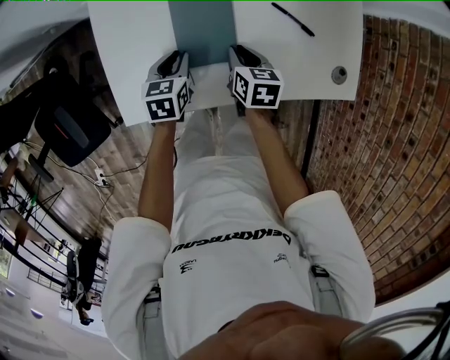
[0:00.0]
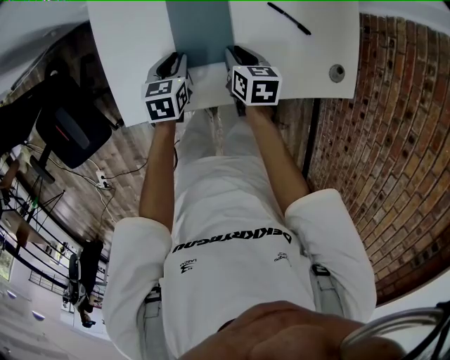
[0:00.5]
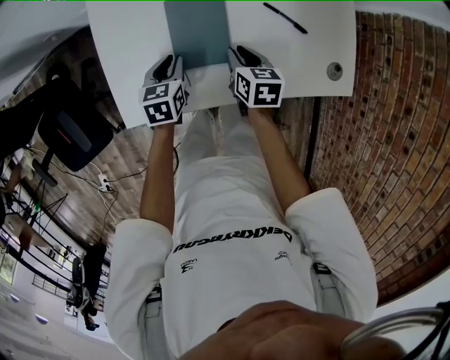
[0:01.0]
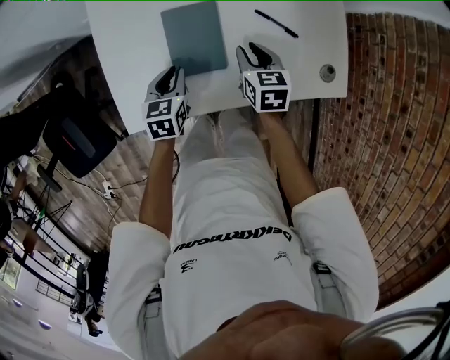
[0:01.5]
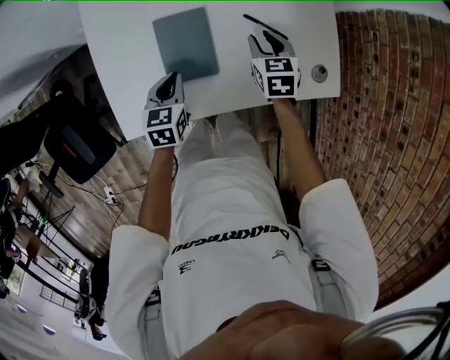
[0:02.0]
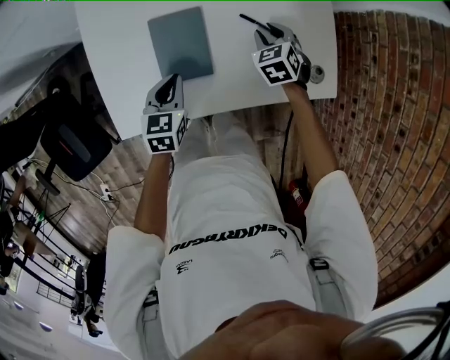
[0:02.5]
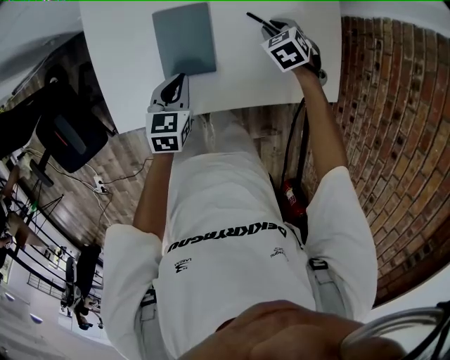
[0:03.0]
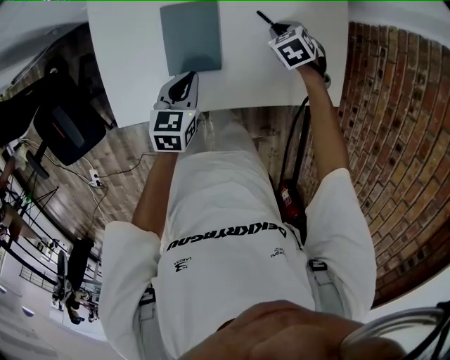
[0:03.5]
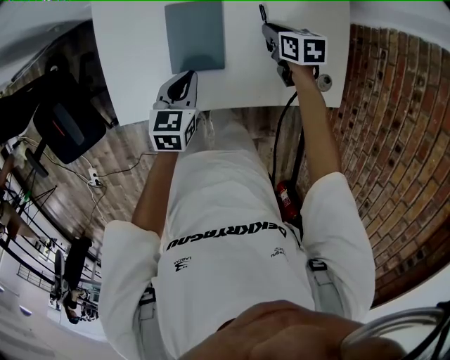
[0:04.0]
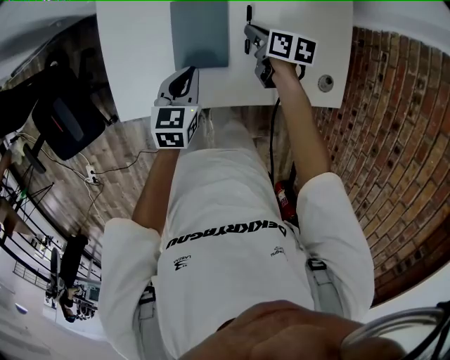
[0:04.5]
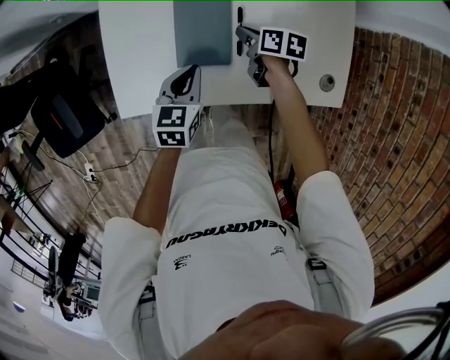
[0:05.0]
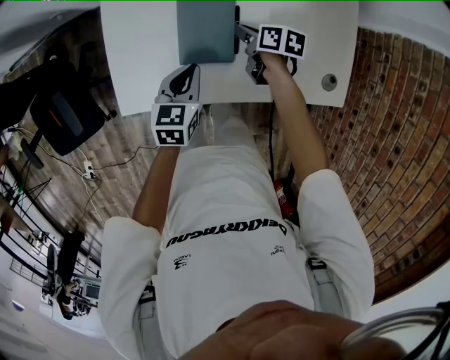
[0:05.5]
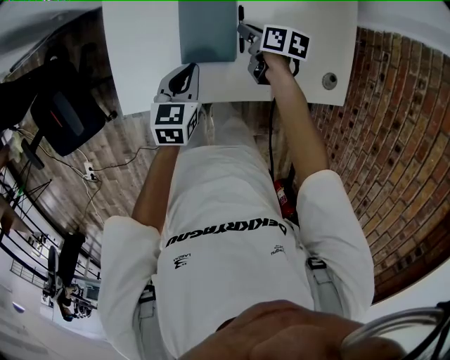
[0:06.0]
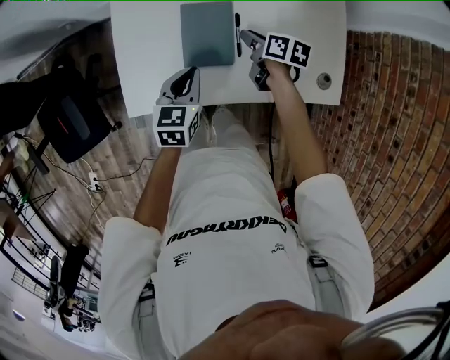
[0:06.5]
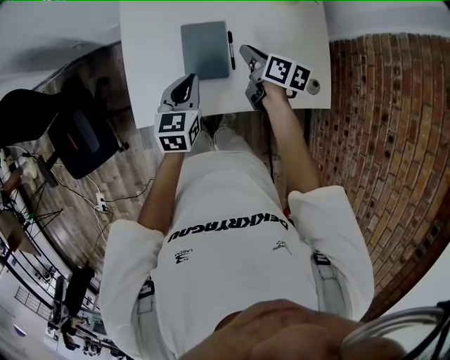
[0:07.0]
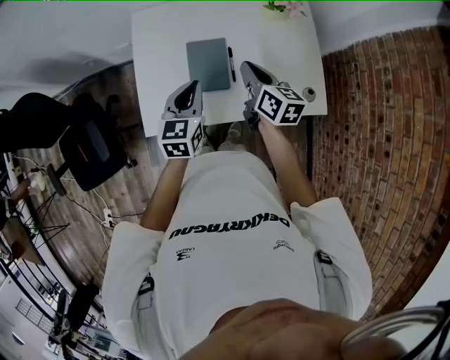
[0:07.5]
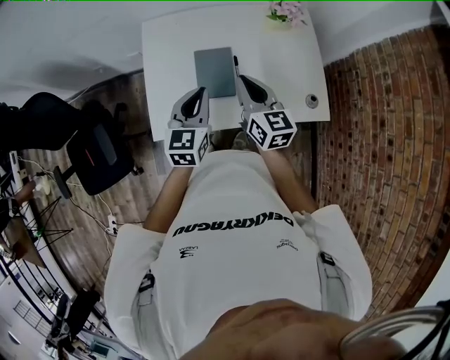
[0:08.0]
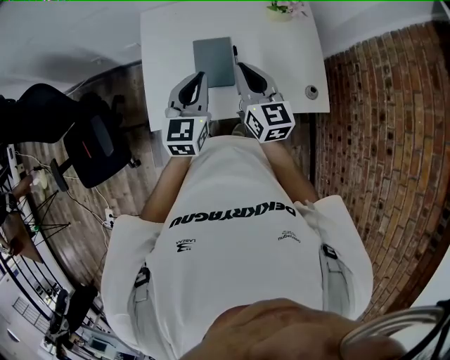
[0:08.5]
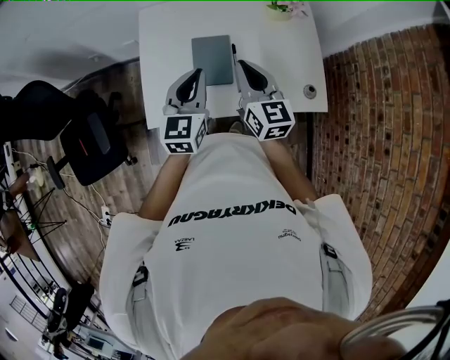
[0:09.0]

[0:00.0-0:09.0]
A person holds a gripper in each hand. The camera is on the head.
0:00.0 to 0:02.0: The left gripper is displaced upward by some 5 cm; the right gripper travels to the right, forward and upward by some 15 cm, and changes its angle by roughly 20 degrees.
0:02.0 to 0:04.5: The right gripper goes some 10 cm to the left and downward, and changes its angle by some 40 degrees.
0:04.5 to 0:07.0: Both grippers travel together upward, roughly 15 cm.
0:07.0 to 0:09.0: The right gripper is displaced upward and backward by some 20 cm, and rotates roughly 50 degrees. Meanwhile the left gripper goes approximately 15 cm upward.

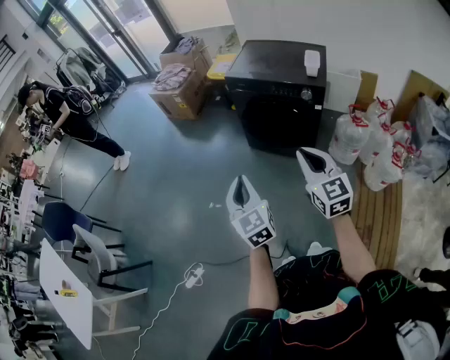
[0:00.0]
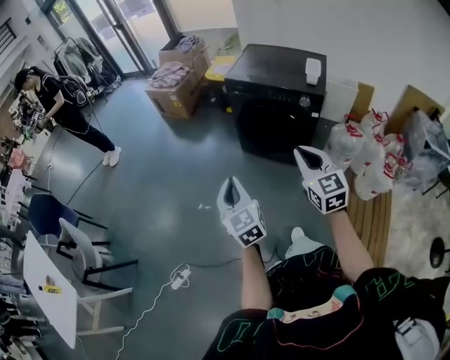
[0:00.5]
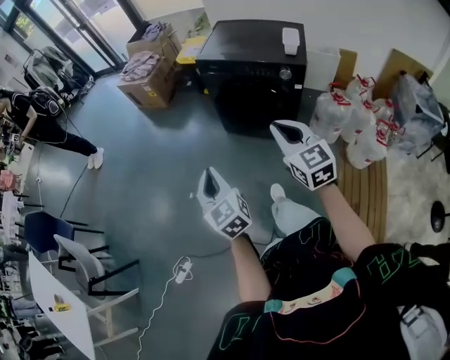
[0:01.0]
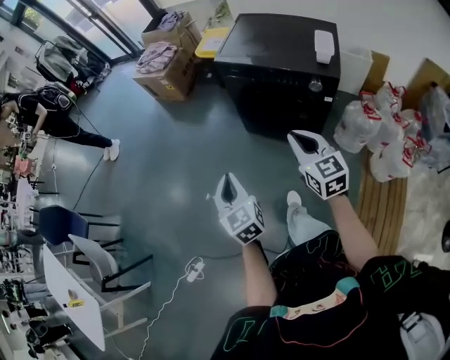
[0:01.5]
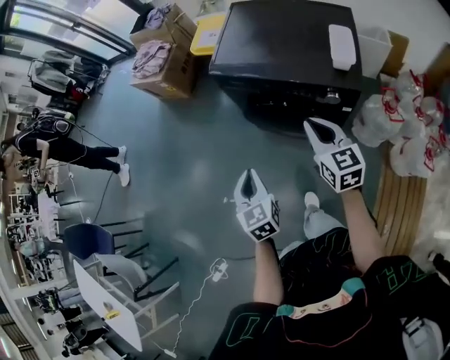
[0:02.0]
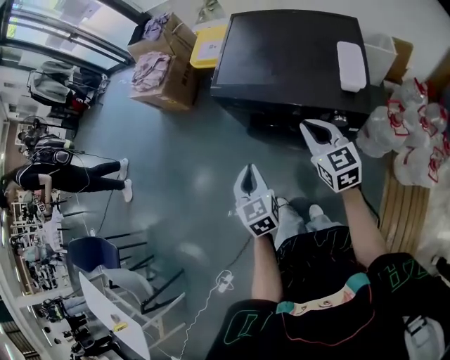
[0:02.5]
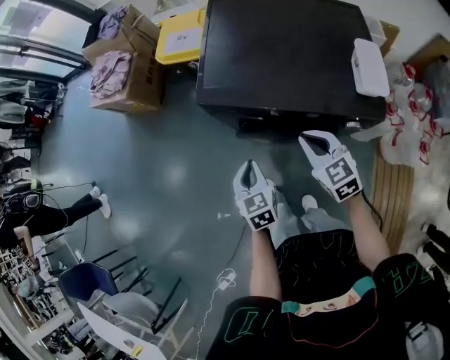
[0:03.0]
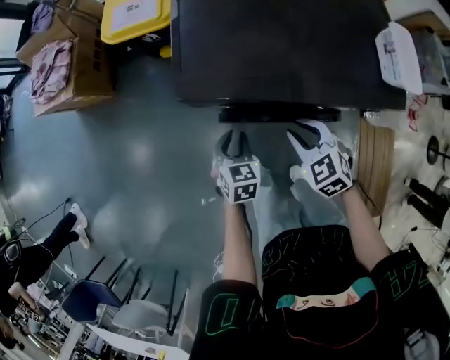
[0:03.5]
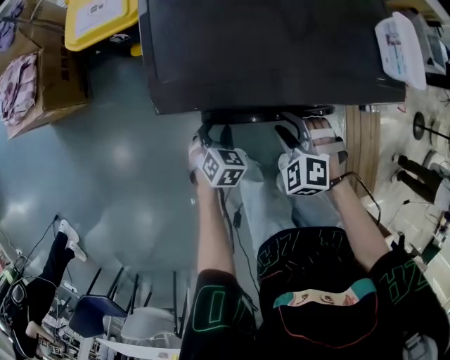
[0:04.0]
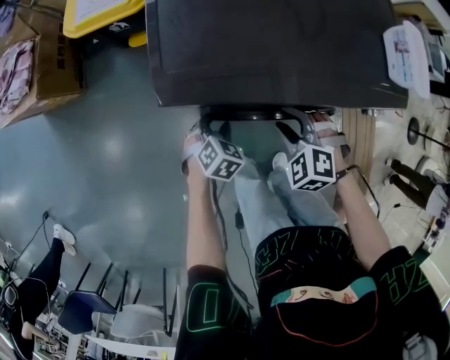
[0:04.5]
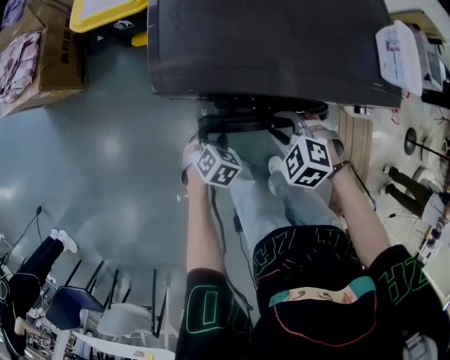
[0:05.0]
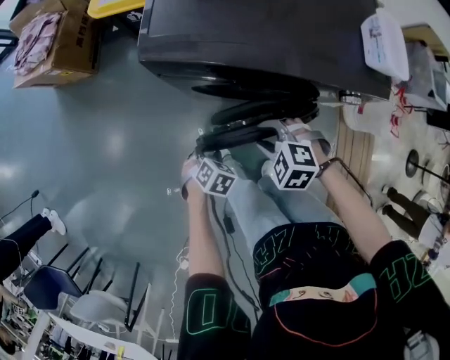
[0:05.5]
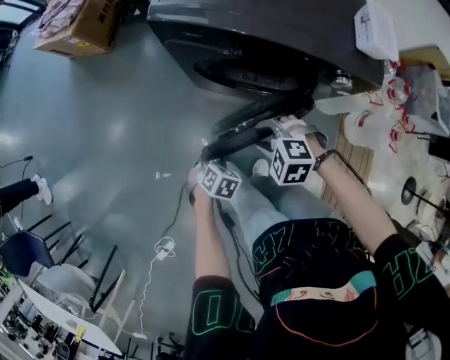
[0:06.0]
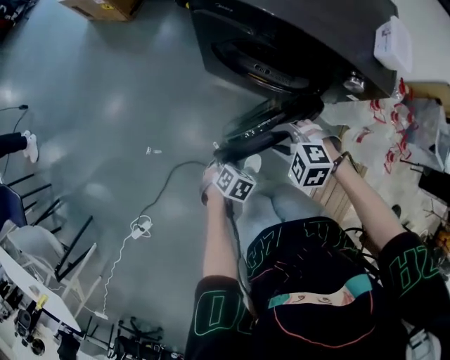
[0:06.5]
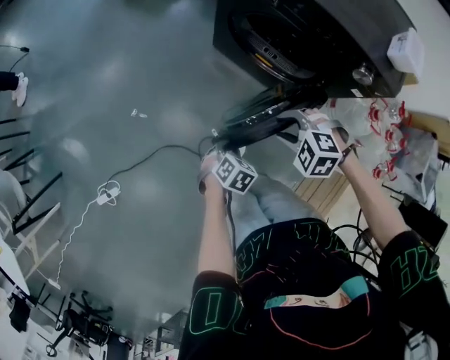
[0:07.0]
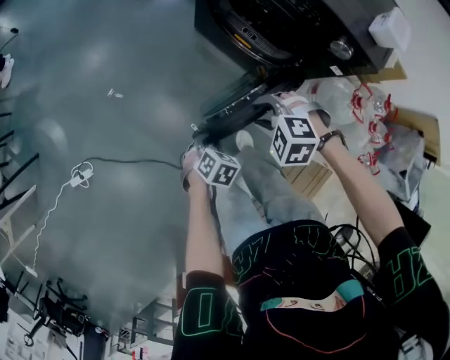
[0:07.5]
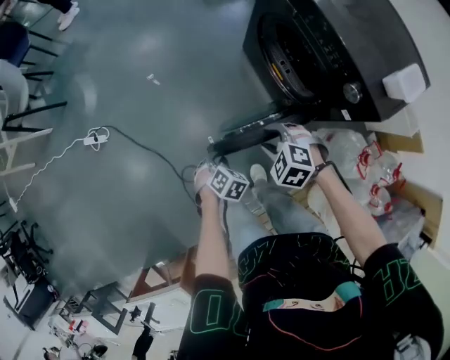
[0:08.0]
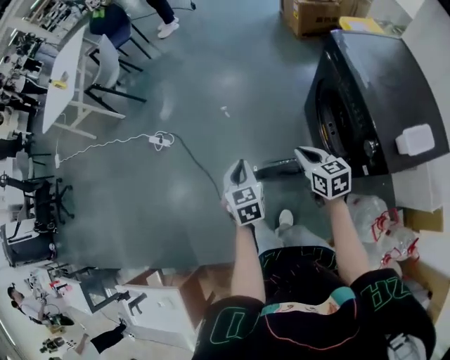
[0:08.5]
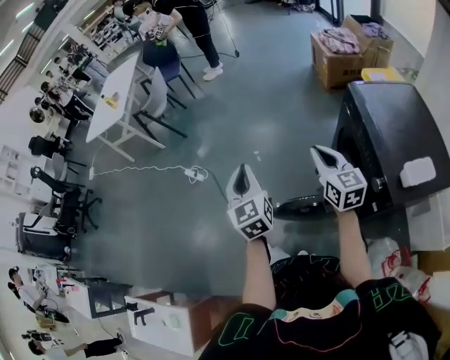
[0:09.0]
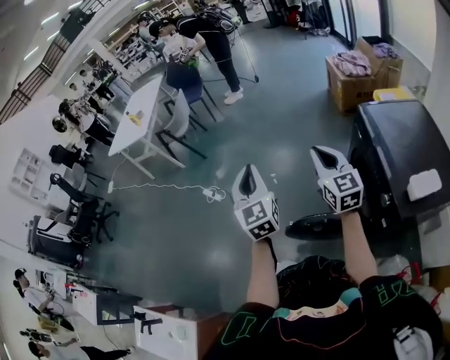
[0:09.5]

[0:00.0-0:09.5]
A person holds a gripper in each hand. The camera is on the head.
0:00.0 to 0:02.0: The left gripper heads forward, downward and to the right, covering about 35 cm, while the right gripper heads forward and to the right, covering about 35 cm.
0:02.0 to 0:04.0: Both grippers travel together downward, some 30 cm. The left gripper changes its angle by approximately 70 degrees, and opens, while the right gripper tips its fingers downward by roughly 40 degrees, and opens its fingers.
0:04.0 to 0:05.5: The left gripper shifts by some 15 cm. Meanwhile the right gripper ends up roughly 10 cm from where it was, and turns by roughly 30 degrees.
0:05.5 to 0:07.5: The right gripper changes place by roughly 25 cm, and rolls counterclockwise, seen from behind, by some 40 degrees; the left gripper changes place by some 35 cm, and changes its angle by approximately 40 degrees.
0:07.5 to 0:09.5: Both grippers move upward, approximately 50 cm. The right gripper tips its fingers upward by approximately 70 degrees, and closes; the left gripper points its fingers roughly 70 degrees further upward, and closes.

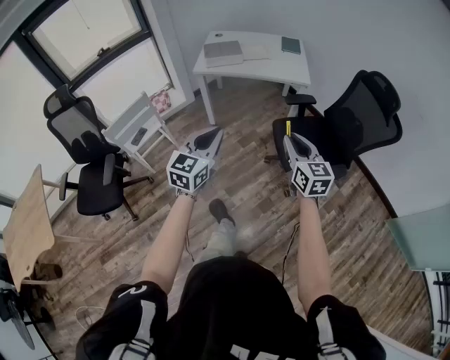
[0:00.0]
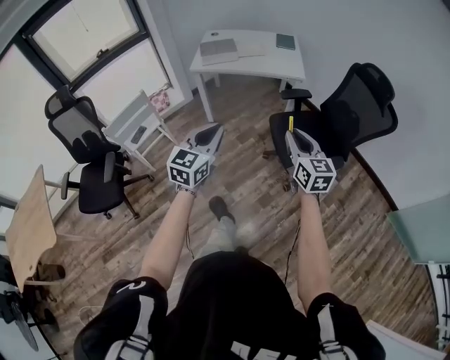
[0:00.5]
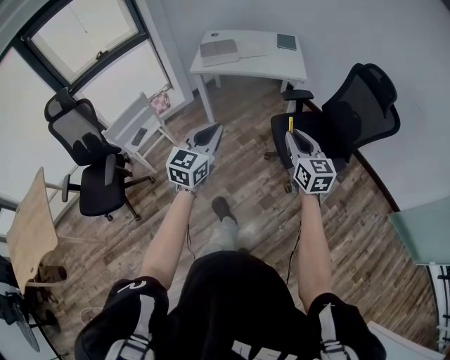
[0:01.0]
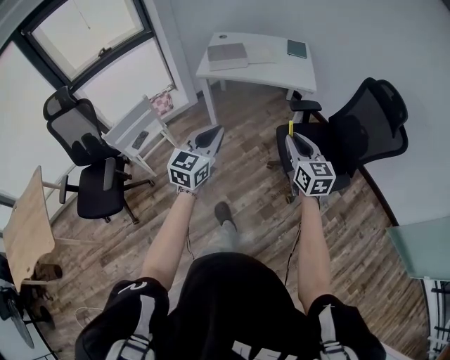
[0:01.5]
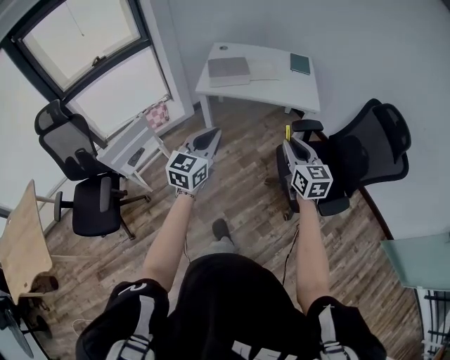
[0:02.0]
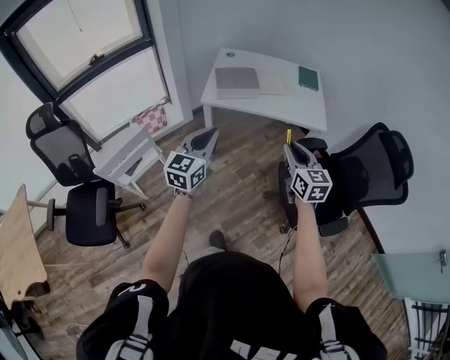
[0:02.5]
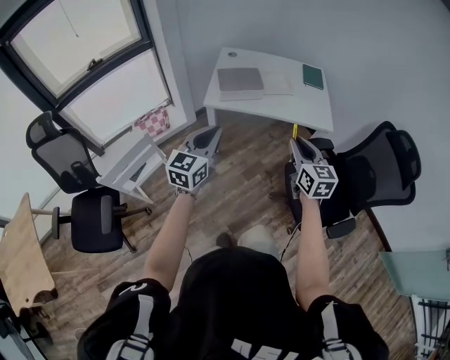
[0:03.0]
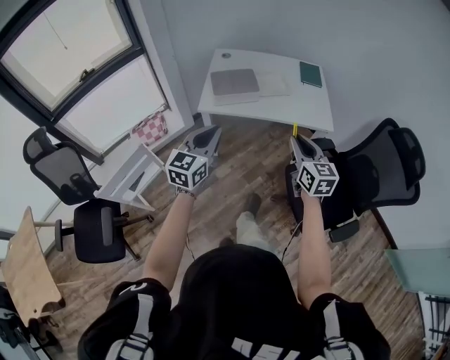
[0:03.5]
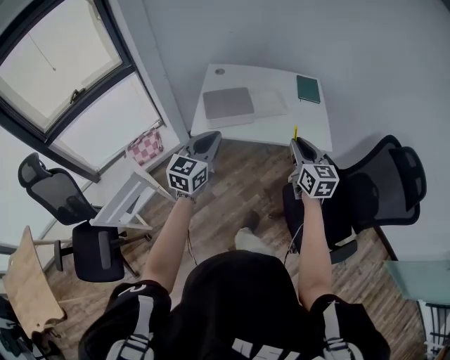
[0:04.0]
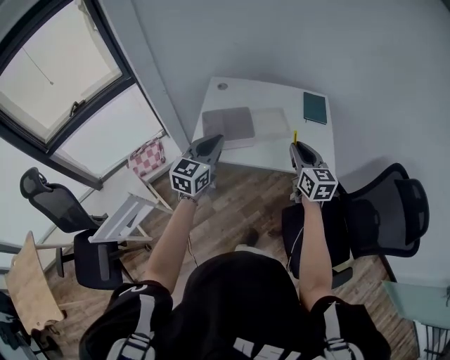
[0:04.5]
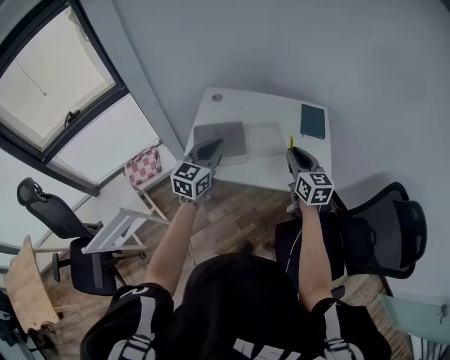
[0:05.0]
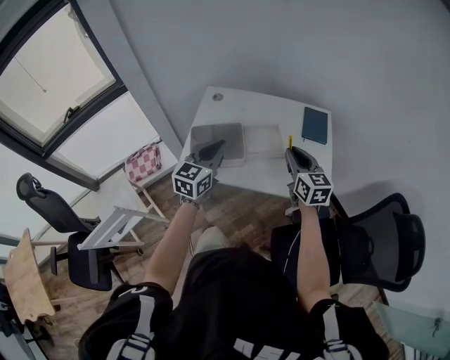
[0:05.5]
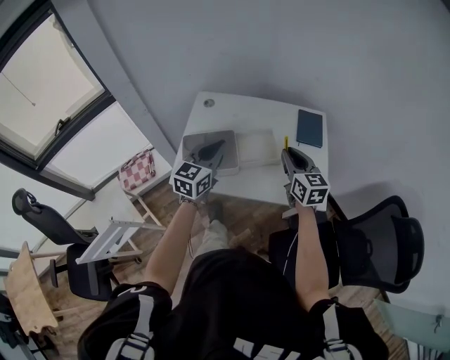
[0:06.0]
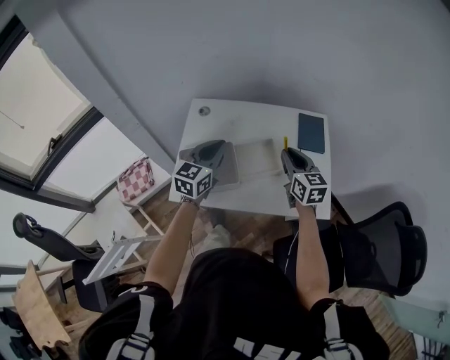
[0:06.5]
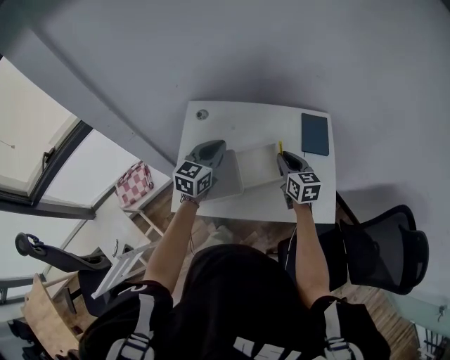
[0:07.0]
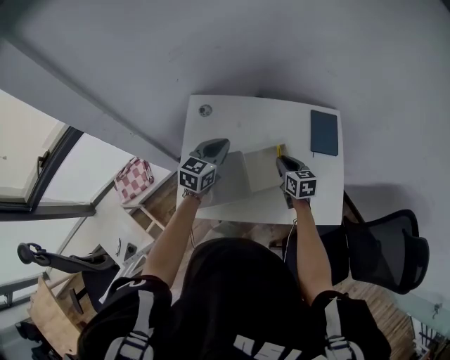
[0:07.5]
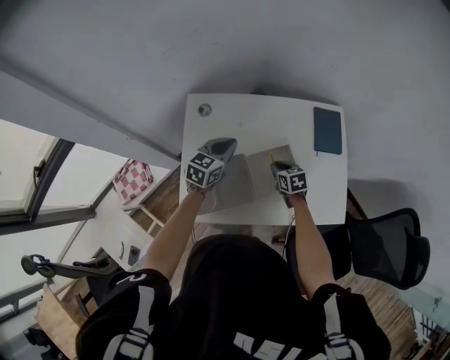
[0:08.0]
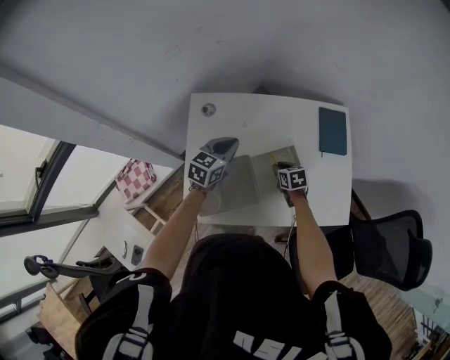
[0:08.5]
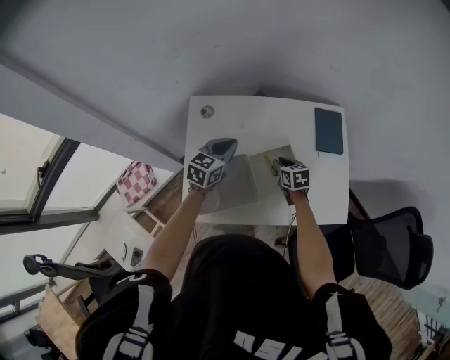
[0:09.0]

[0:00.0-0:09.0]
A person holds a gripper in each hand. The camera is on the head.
0:00.0 to 0:02.0: Both grippers travel together forward and to the left, about 20 cm.
0:02.0 to 0:04.5: Both grippers are carried forward, some 40 cm.
0:04.5 to 0:07.0: Both grippers travel together forward, some 30 cm.
0:07.0 to 0:09.0: The right gripper goes about 15 cm downward, and rotates approximately 20 degrees. Meanwhile the left gripper goes some 10 cm downward and forward.
